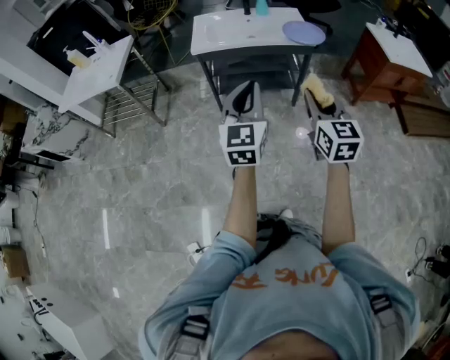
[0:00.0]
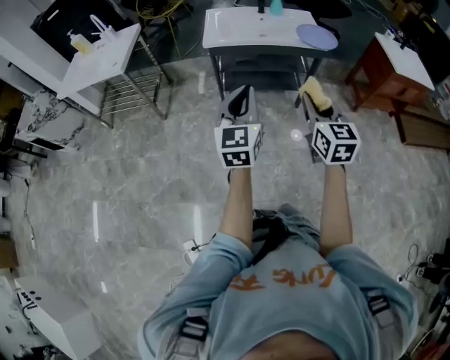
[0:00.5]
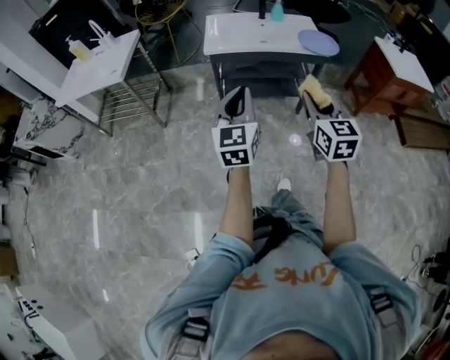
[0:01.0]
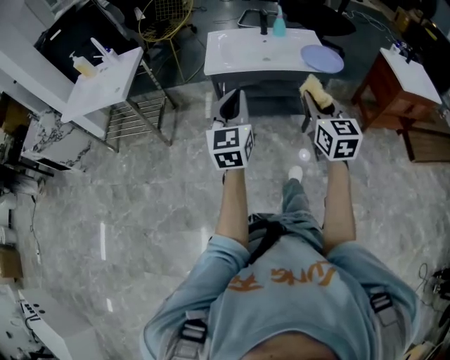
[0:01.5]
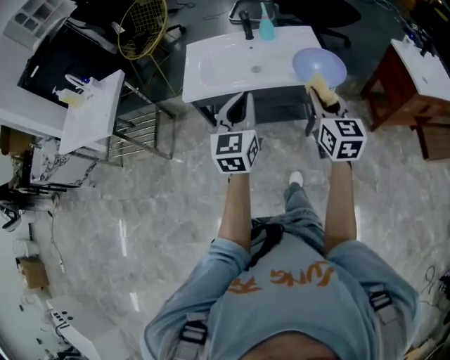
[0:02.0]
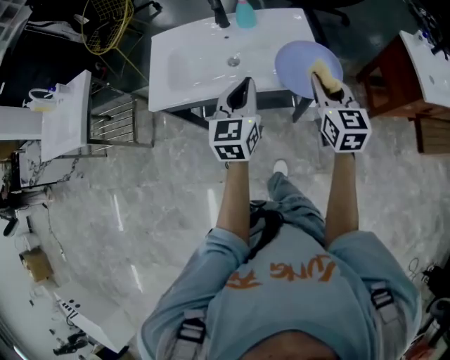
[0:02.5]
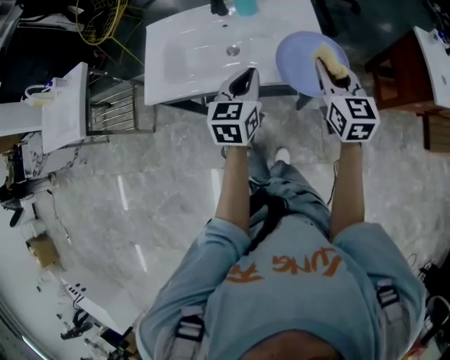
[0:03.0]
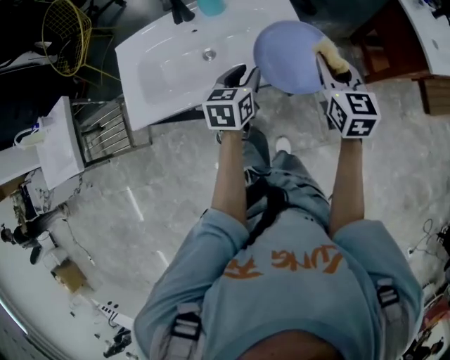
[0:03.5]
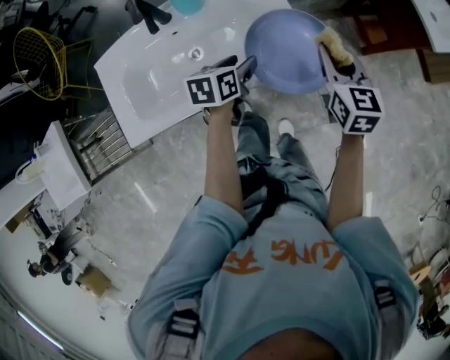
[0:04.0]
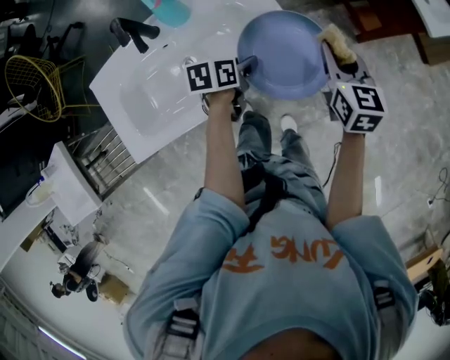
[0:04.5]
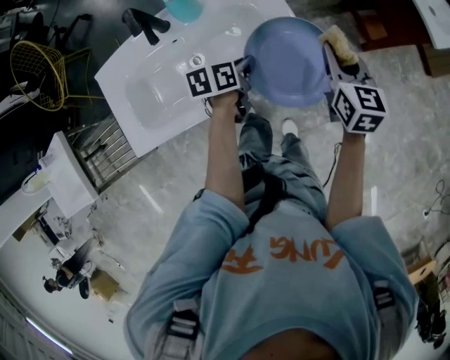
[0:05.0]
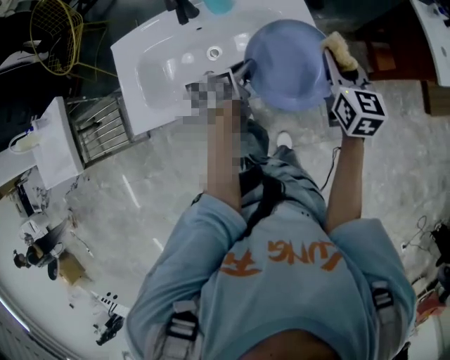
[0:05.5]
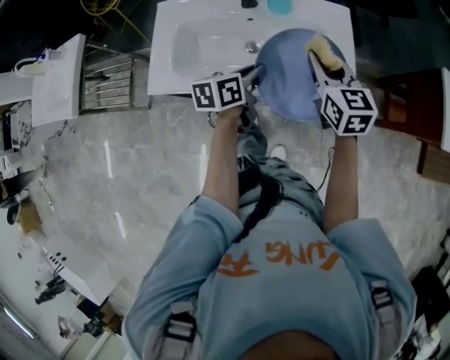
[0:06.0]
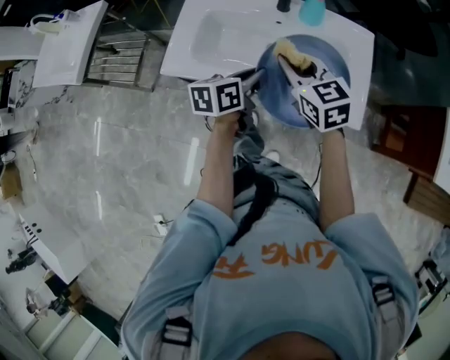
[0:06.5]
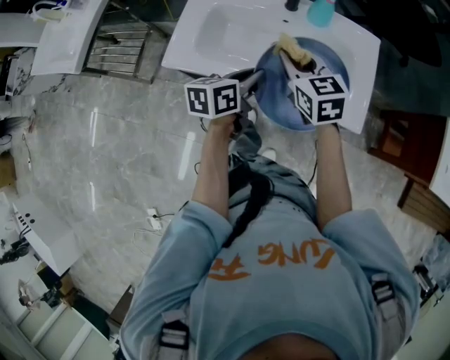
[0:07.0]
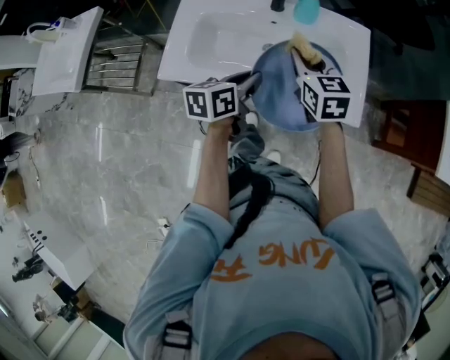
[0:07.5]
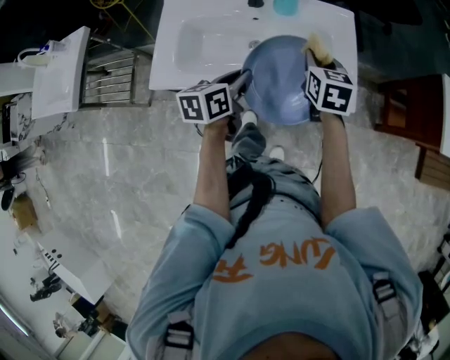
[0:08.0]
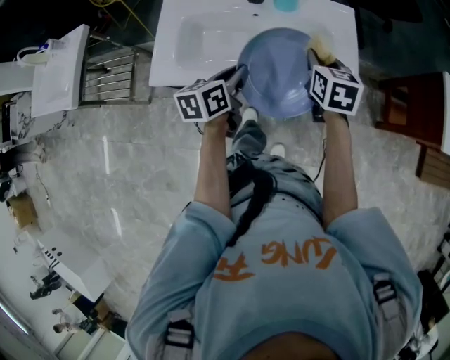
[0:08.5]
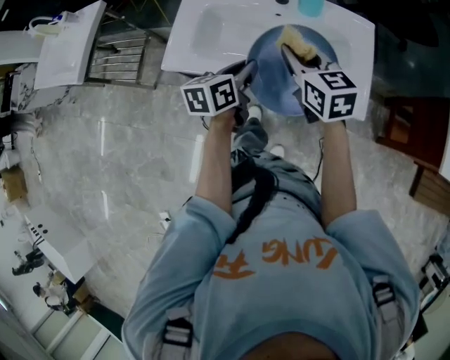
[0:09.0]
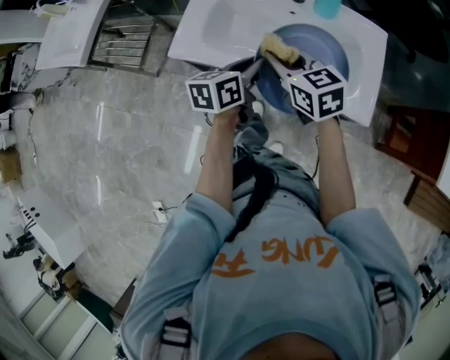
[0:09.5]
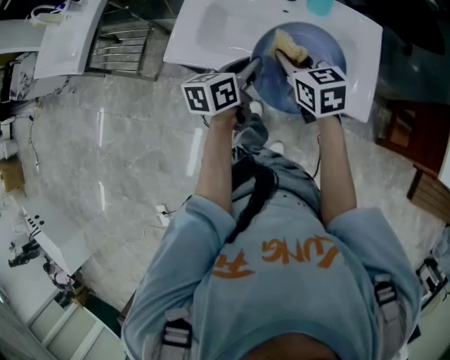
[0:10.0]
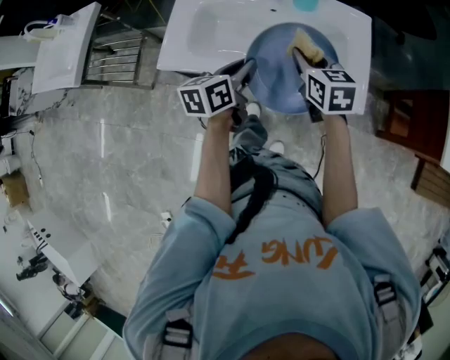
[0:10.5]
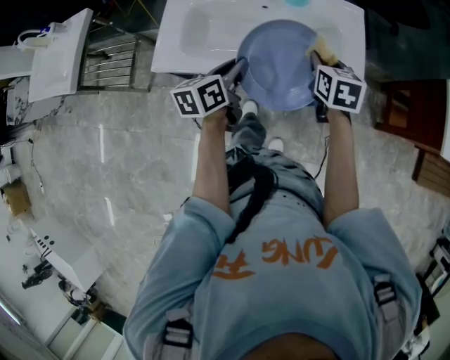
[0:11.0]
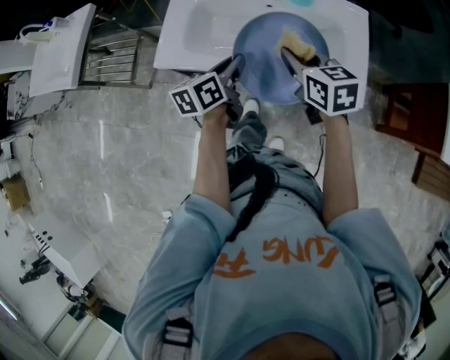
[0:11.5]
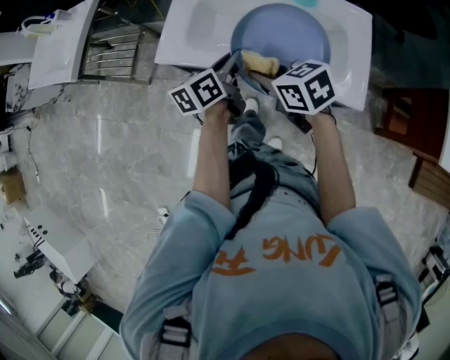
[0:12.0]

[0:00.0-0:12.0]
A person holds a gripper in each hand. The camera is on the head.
0:00.0 to 0:02.0: Both grippers travel together forward, roughly 35 cm.
0:02.0 to 0:04.0: The left gripper changes place by some 50 cm, tilts its fingers about 40 degrees downward, and opens its fingers. Meanwhile the right gripper moves some 35 cm, and turns by some 20 degrees.
0:04.0 to 0:06.0: The right gripper changes place by roughly 20 cm, and rotates roughly 30 degrees. The left gripper moves approximately 15 cm, changes its angle by approximately 30 degrees, and closes.
0:06.0 to 0:08.0: The right gripper reaches about 15 cm to the left, then returns. Meanwhile the left gripper heads to the left, covering some 5 cm.
0:08.0 to 0:10.0: The right gripper ends up about 15 cm from where it was, and swivels roughly 30 degrees.
0:10.0 to 0:12.0: The right gripper turns by roughly 20 degrees.

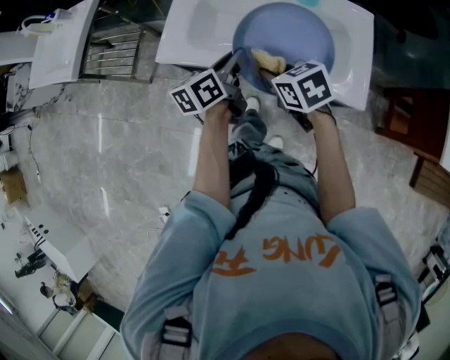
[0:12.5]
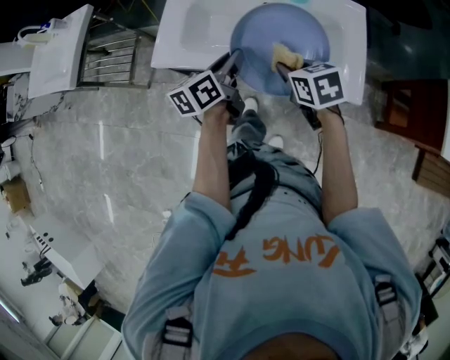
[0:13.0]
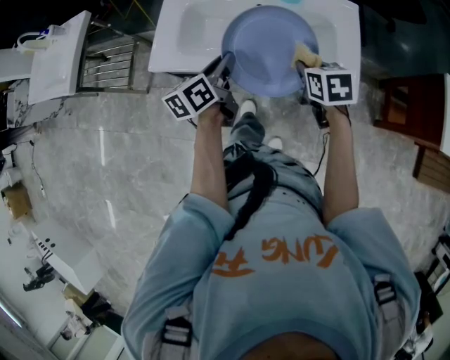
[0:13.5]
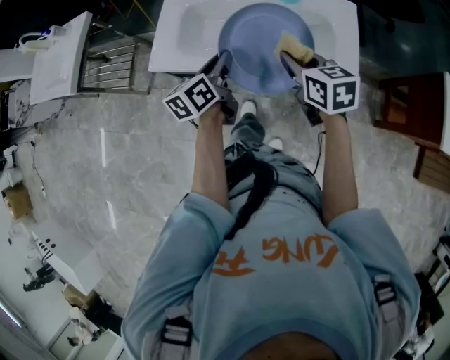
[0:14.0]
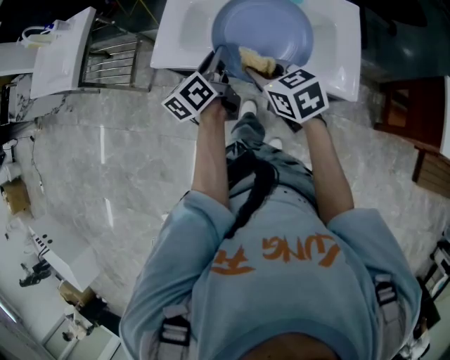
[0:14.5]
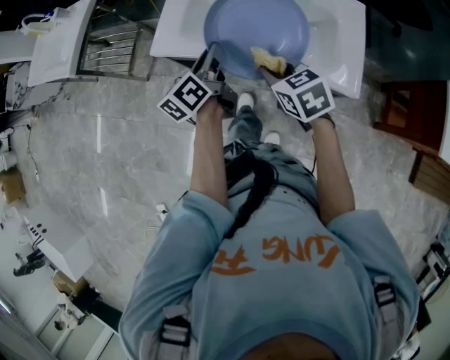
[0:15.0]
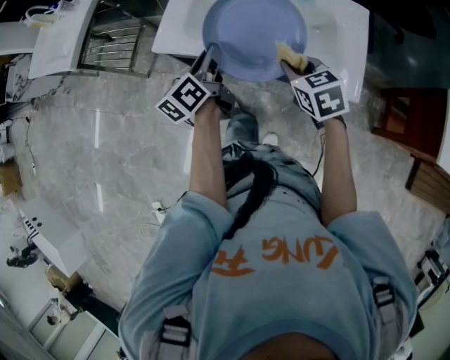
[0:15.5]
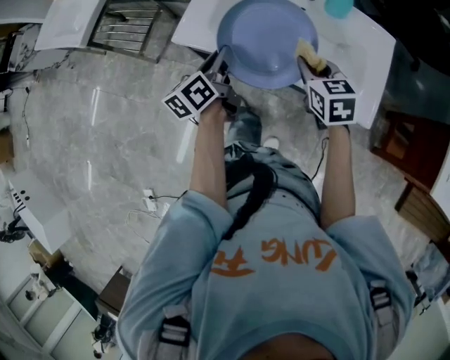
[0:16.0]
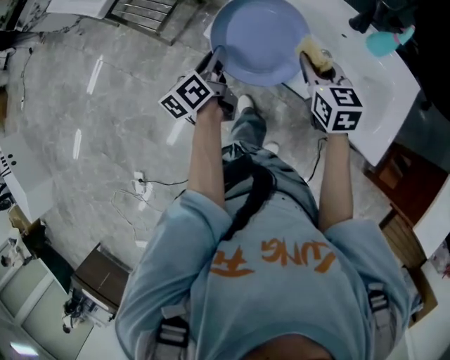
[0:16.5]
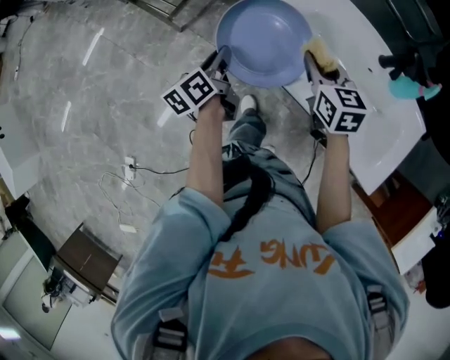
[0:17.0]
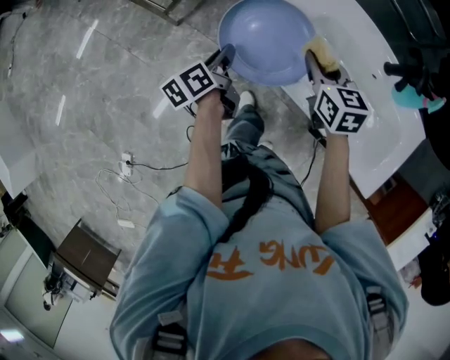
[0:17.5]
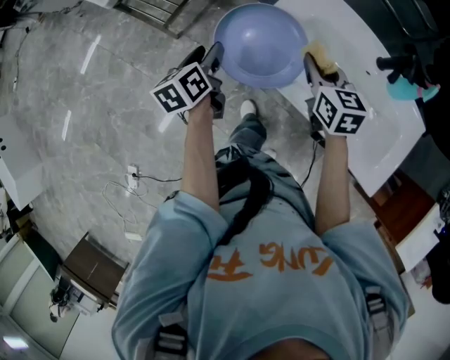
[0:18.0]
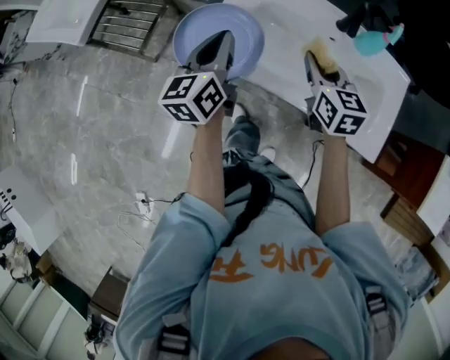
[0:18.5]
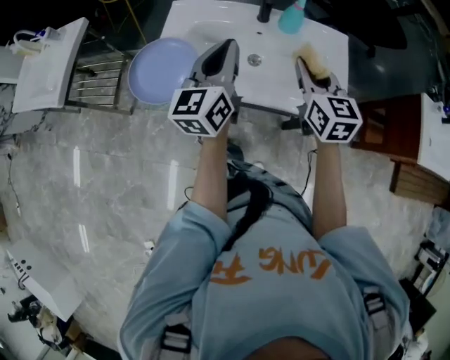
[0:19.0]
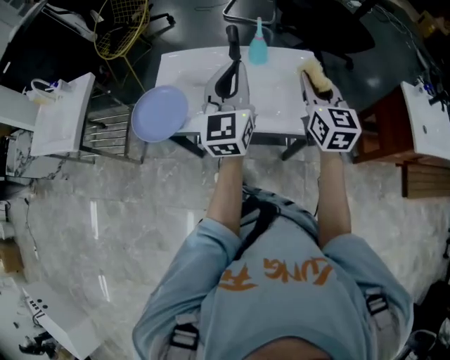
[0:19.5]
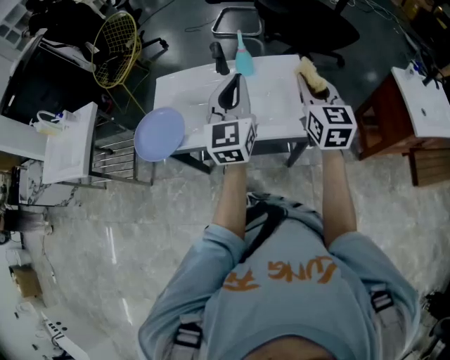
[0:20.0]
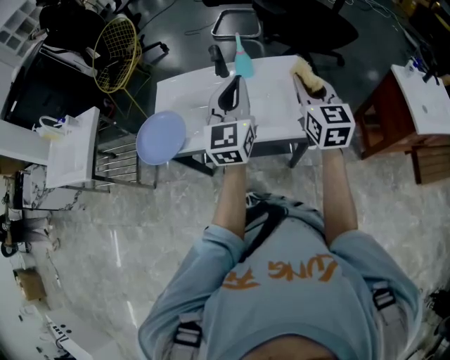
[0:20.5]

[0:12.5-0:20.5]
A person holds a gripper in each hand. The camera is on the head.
0:12.5 to 0:14.5: The right gripper goes to the right and returns, approximately 15 cm each way.
0:14.5 to 0:16.5: The left gripper heads to the left, covering some 20 cm, and swivels some 20 degrees; the right gripper is displaced forward by approximately 10 cm.
0:16.5 to 0:18.5: The right gripper moves roughly 10 cm to the left and comes back. Meanwhile the left gripper moves upward, forward and to the right, roughly 10 cm, turns by about 30 degrees, and opens and closes again.
0:18.5 to 0:20.5: The grippers both shift to the right and upward by roughly 40 cm. The right gripper rotates some 40 degrees, while the left gripper changes its angle by about 40 degrees.

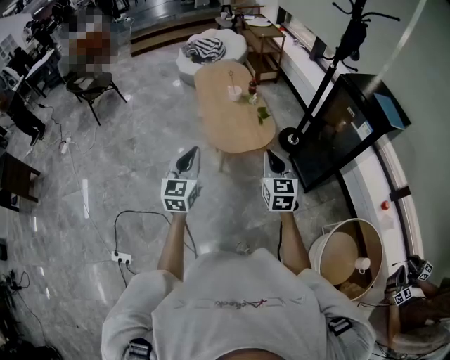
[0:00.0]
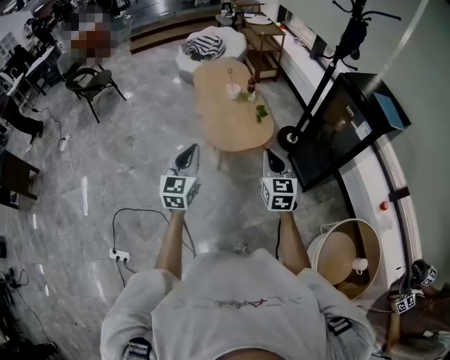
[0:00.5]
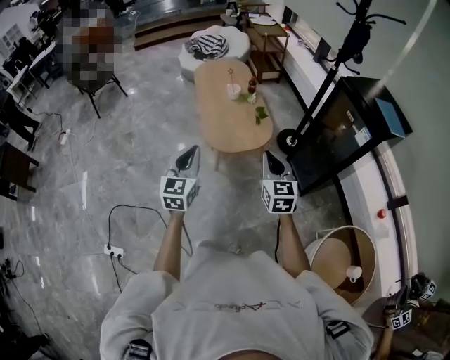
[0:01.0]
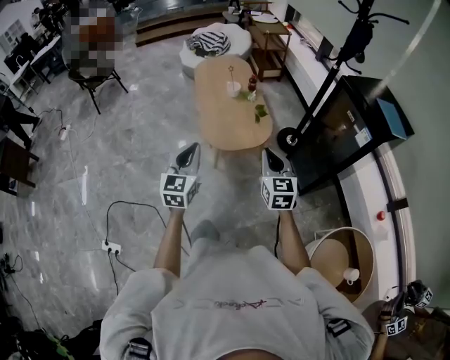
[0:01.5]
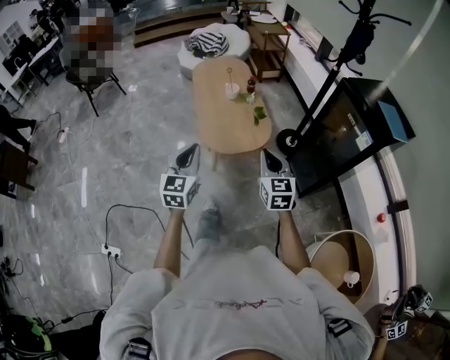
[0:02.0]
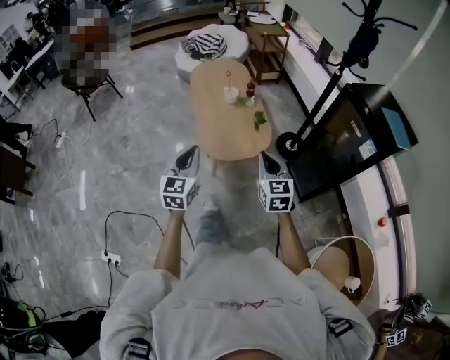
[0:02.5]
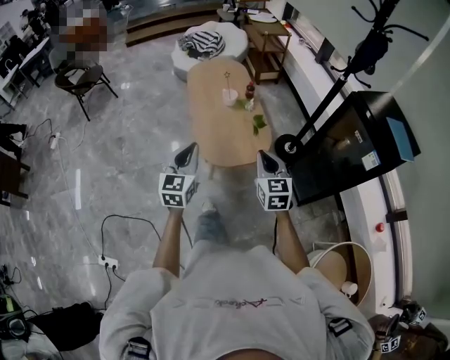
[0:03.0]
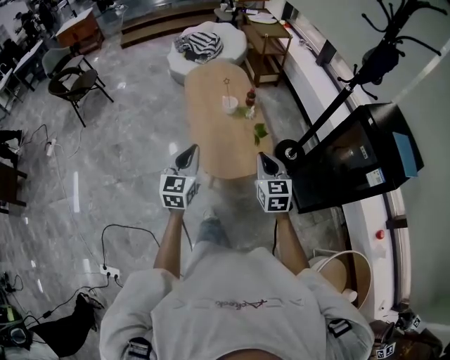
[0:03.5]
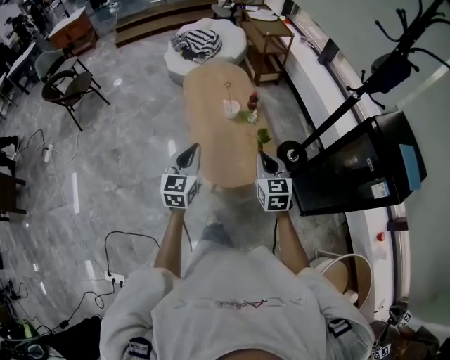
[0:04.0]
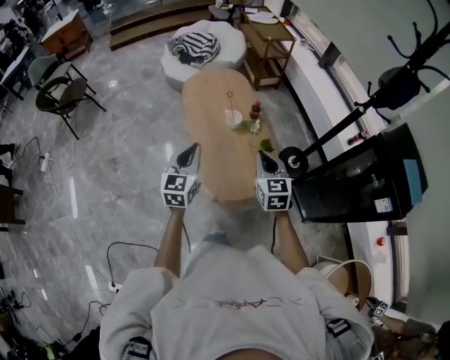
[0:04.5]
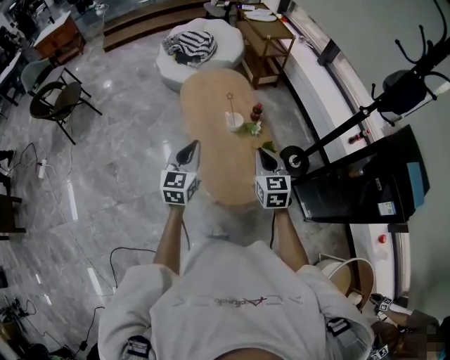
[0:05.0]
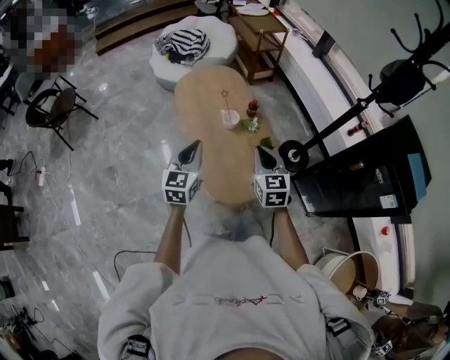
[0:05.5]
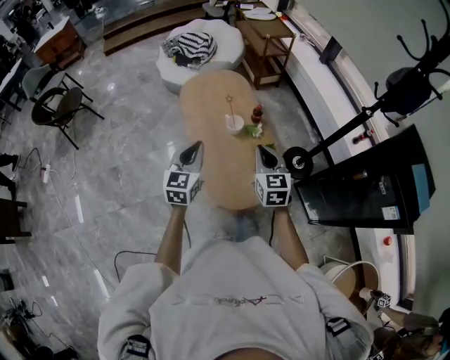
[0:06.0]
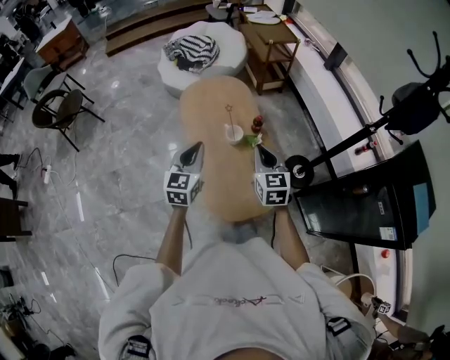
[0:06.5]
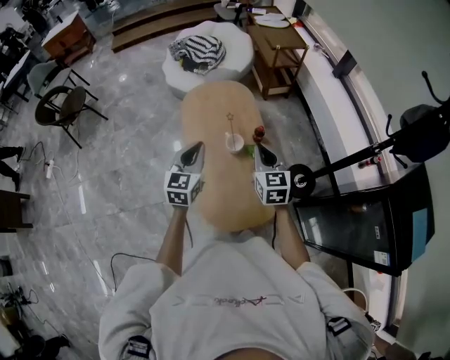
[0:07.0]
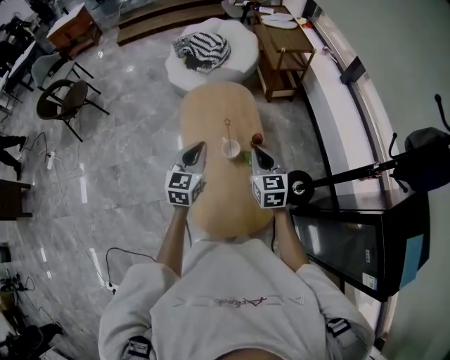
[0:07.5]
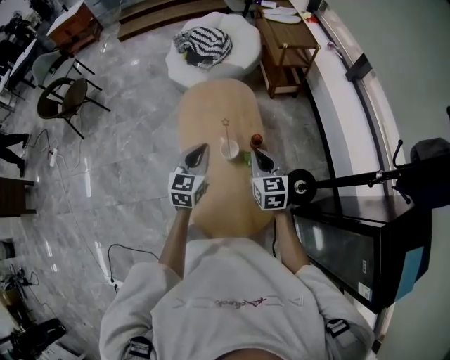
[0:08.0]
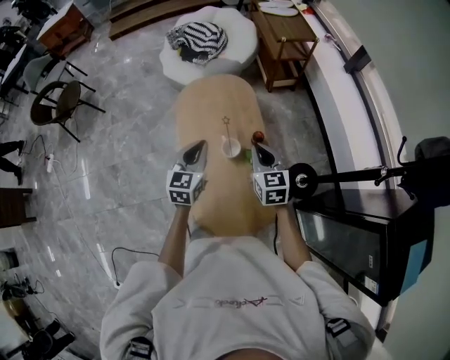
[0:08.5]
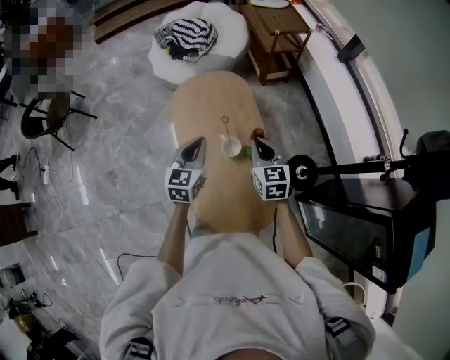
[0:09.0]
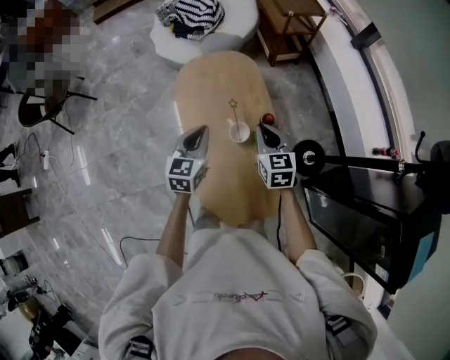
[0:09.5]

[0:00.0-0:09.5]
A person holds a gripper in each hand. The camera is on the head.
0:00.0 to 0:02.0: The left gripper goes about 10 cm to the right and forward; the right gripper moves forward and to the right, approximately 10 cm.
0:02.0 to 0:04.0: The two grippers go roughly 30 cm forward.
0:04.0 to 0:05.5: The left gripper travels forward by about 15 cm. The right gripper goes roughly 15 cm forward and to the left.
0:05.5 to 0:07.5: The right gripper heads forward, covering about 25 cm. The left gripper shifts roughly 25 cm forward and to the right.
0:07.5 to 0:09.5: Both grippers move forward and downward, approximately 15 cm.
